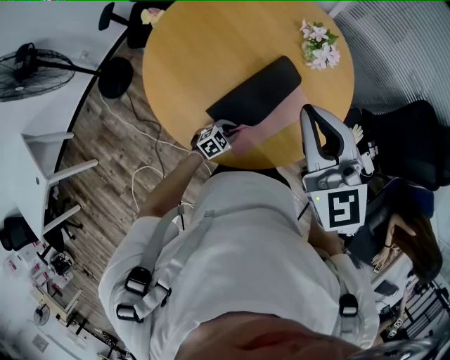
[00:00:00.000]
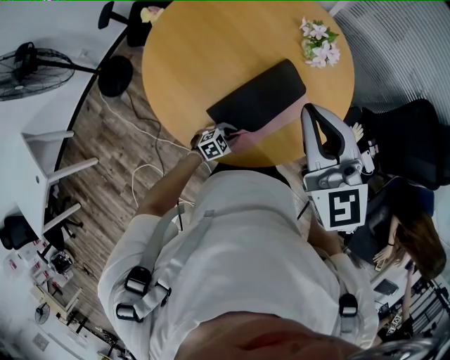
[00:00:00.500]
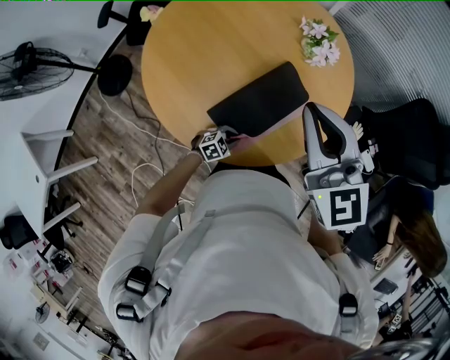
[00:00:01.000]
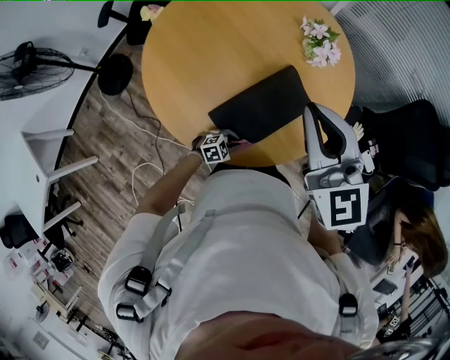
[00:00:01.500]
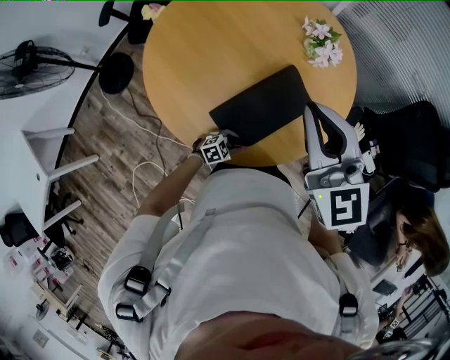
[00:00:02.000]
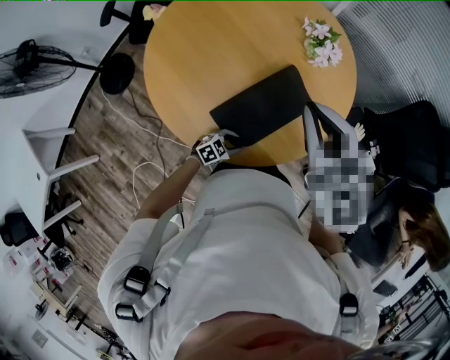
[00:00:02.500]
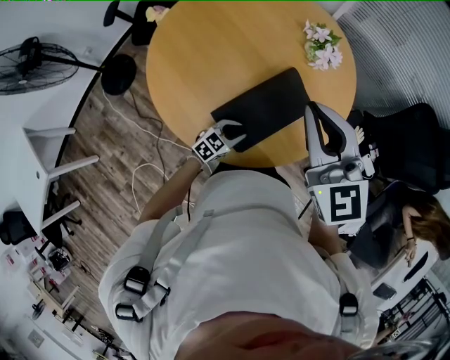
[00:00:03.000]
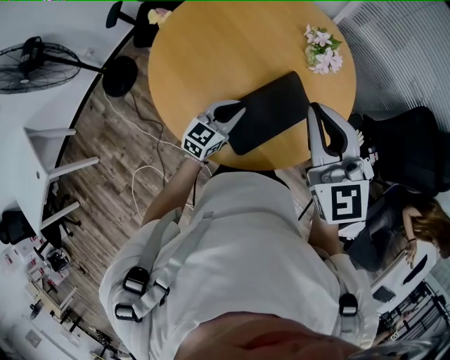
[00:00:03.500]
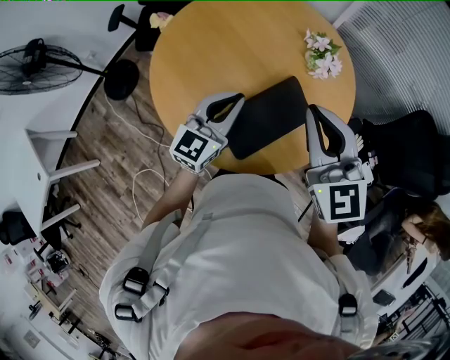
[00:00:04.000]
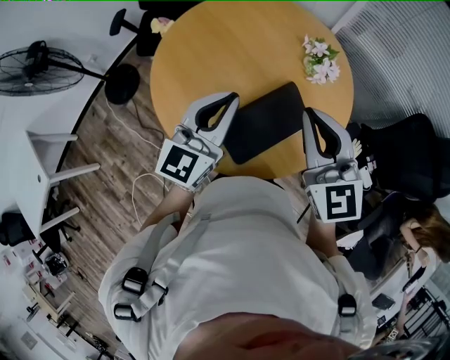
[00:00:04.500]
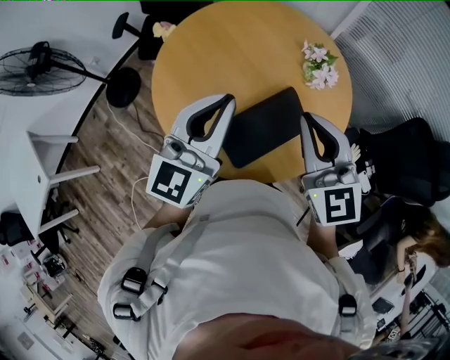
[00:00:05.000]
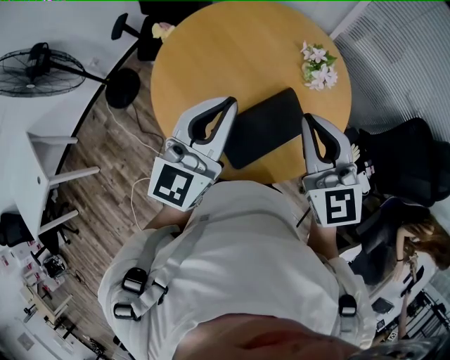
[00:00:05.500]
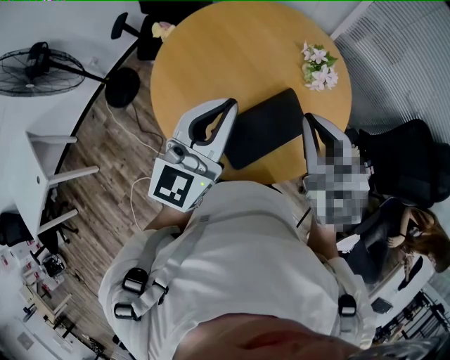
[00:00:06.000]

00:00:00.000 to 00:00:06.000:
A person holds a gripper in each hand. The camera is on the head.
00:00:00.000 to 00:00:02.000: The left gripper moves backward, roughly 5 cm.
00:00:02.000 to 00:00:04.000: The left gripper heads upward, covering approximately 40 cm, points its fingers some 40 degrees further upward, and closes up.
00:00:04.000 to 00:00:06.000: The left gripper goes roughly 15 cm upward.

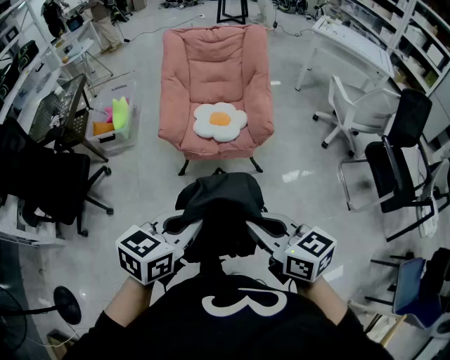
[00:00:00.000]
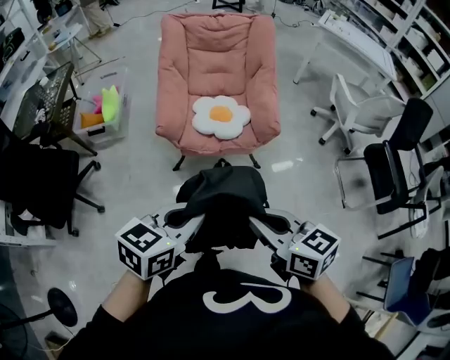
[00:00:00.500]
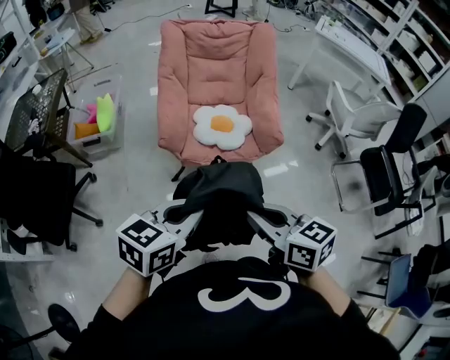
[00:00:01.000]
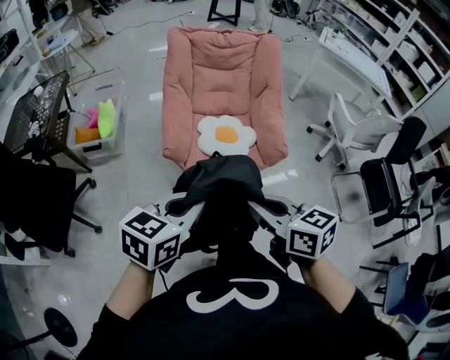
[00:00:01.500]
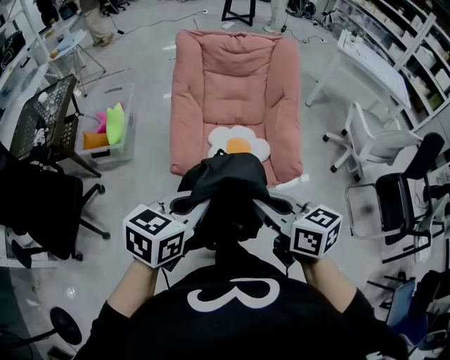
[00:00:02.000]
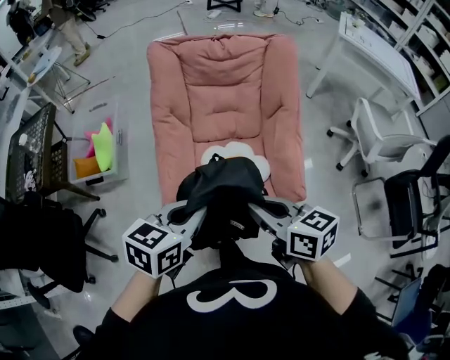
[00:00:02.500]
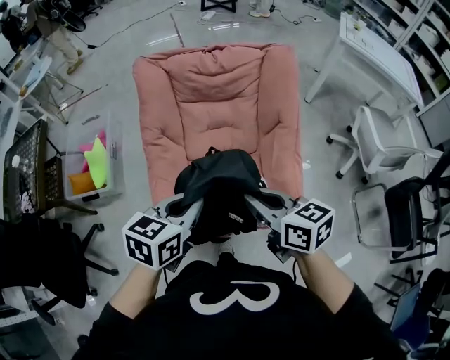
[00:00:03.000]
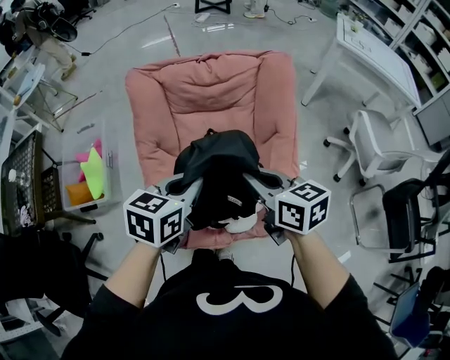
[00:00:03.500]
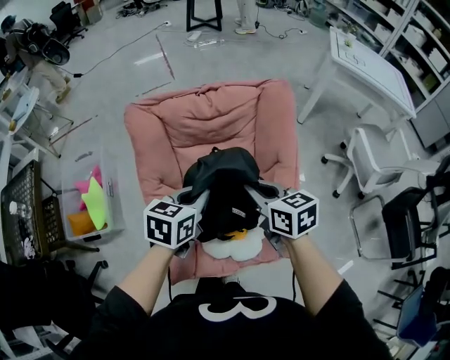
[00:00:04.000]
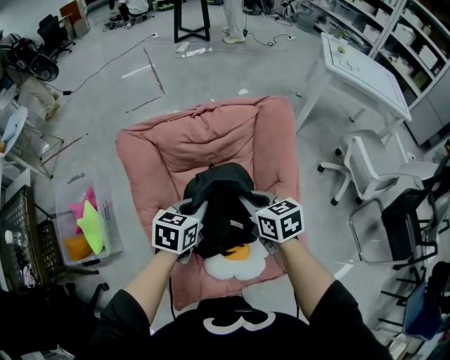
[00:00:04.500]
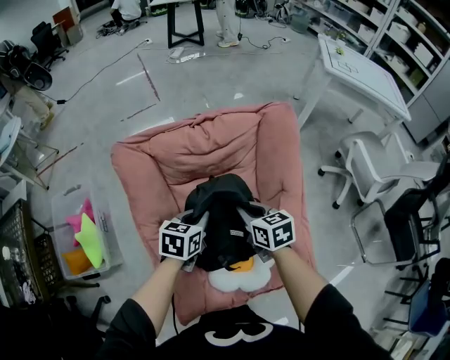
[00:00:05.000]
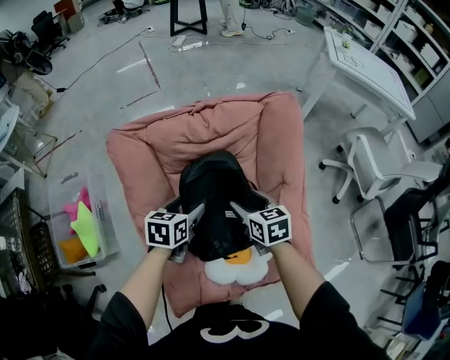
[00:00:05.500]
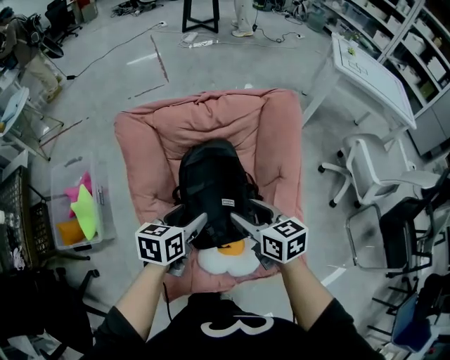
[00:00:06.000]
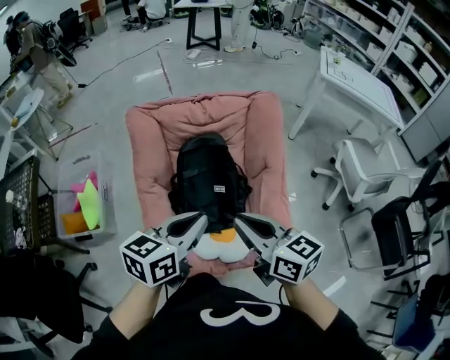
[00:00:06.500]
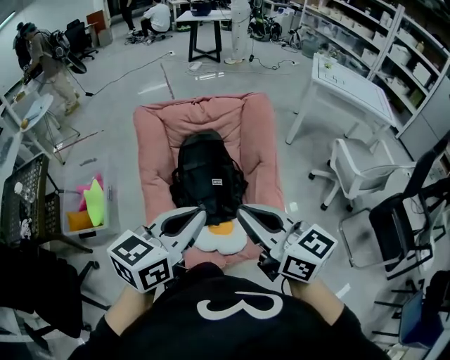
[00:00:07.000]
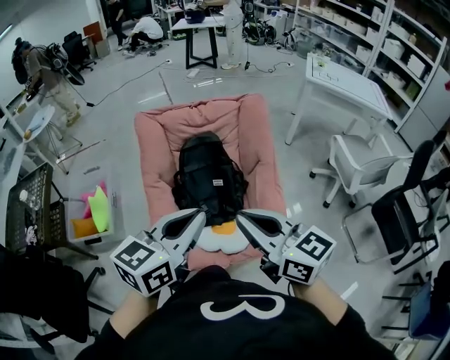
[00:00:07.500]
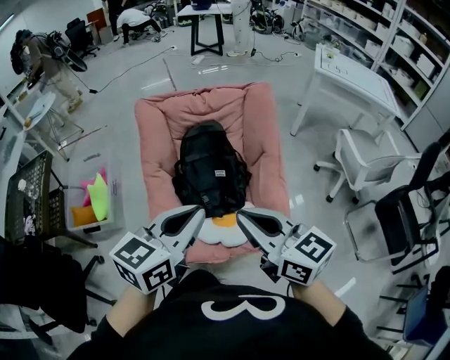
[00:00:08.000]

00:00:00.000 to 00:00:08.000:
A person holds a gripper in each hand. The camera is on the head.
00:00:00.000 to 00:00:02.000: The two grippers go about 35 cm forward and to the left.
00:00:02.000 to 00:00:04.000: Both grippers are carried forward, approximately 50 cm.
00:00:04.000 to 00:00:06.000: The two grippers go approximately 5 cm downward. The left gripper opens its fingers; the right gripper opens up.
00:00:06.000 to 00:00:08.000: The grippers both shift backward and upward by about 35 cm. The left gripper swivels some 30 degrees, and closes up. The right gripper changes its angle by some 30 degrees, and closes.

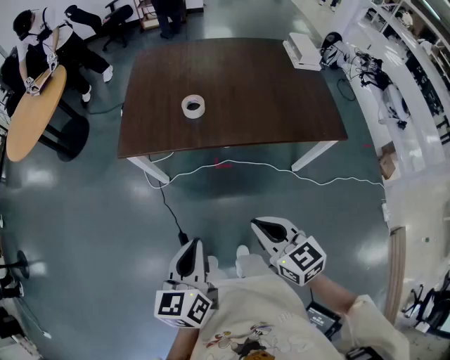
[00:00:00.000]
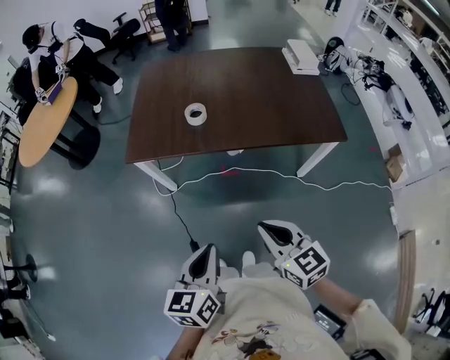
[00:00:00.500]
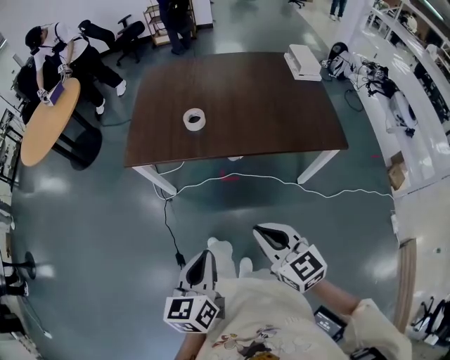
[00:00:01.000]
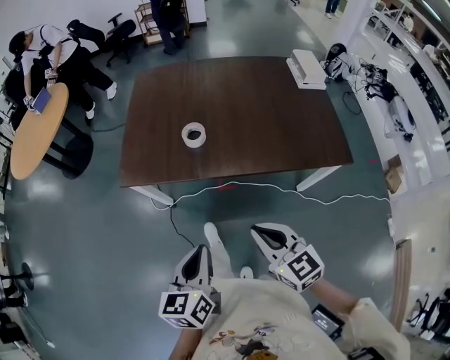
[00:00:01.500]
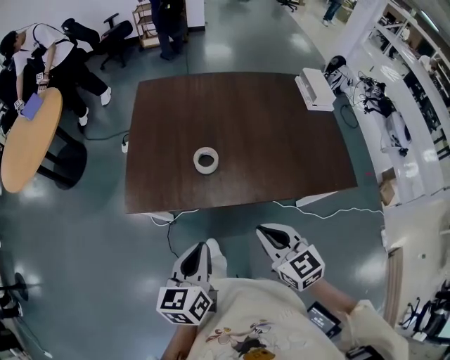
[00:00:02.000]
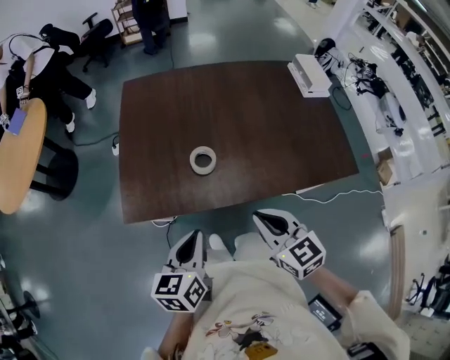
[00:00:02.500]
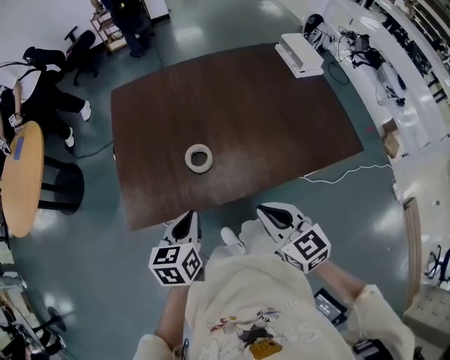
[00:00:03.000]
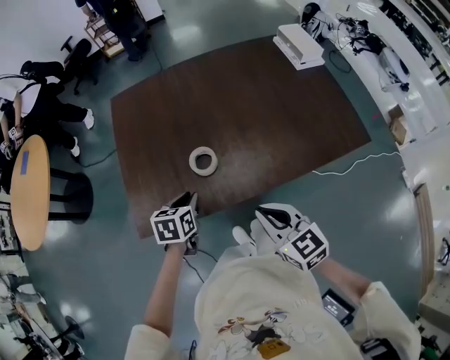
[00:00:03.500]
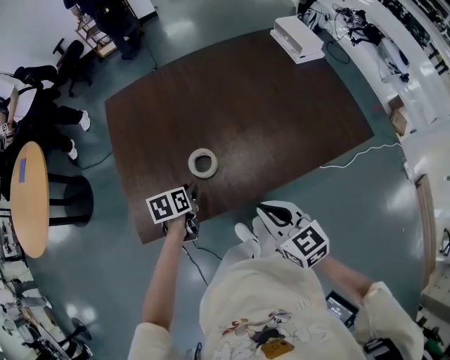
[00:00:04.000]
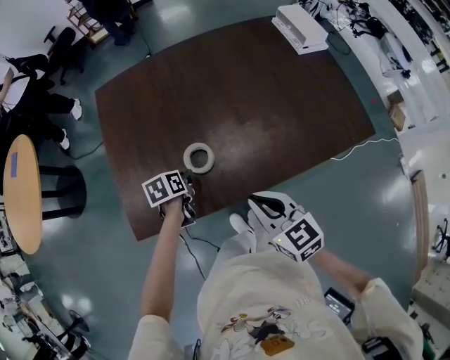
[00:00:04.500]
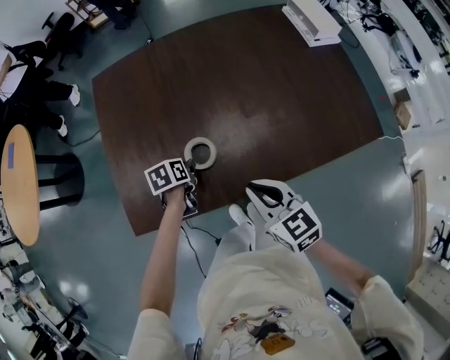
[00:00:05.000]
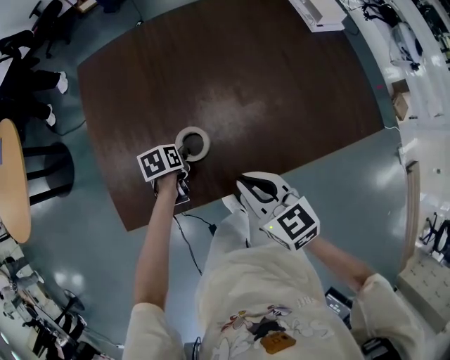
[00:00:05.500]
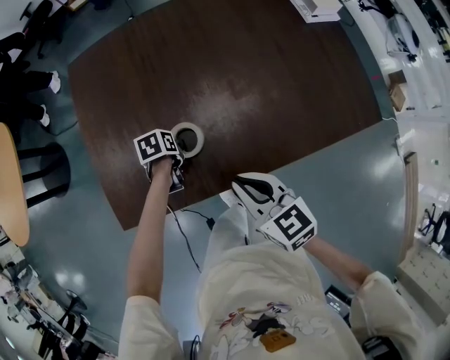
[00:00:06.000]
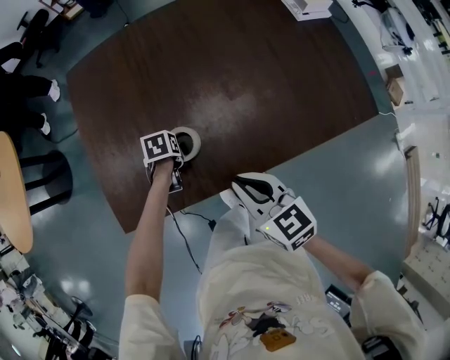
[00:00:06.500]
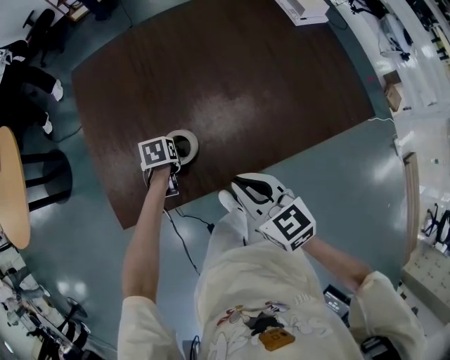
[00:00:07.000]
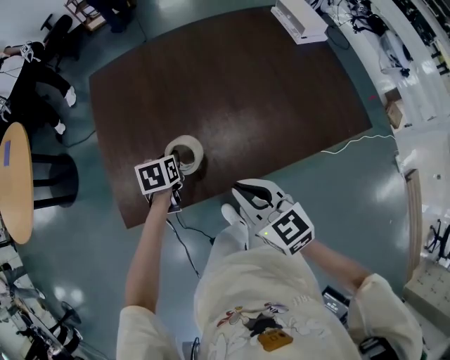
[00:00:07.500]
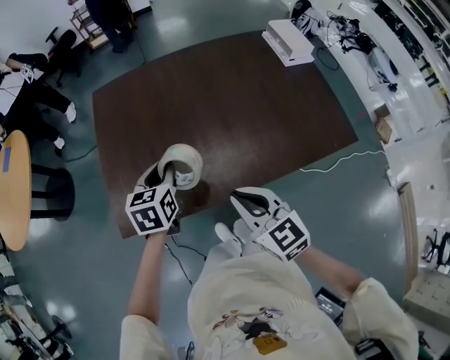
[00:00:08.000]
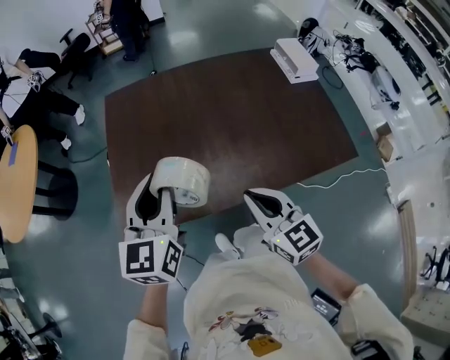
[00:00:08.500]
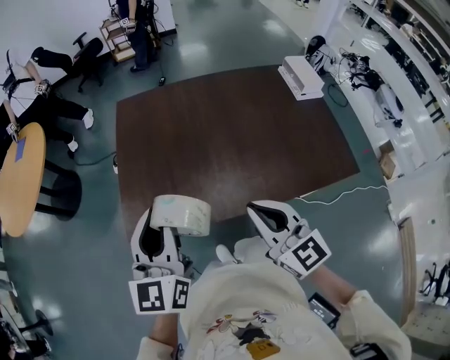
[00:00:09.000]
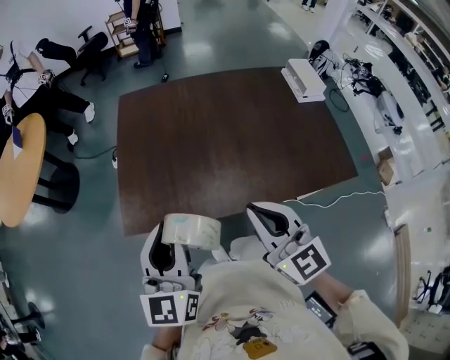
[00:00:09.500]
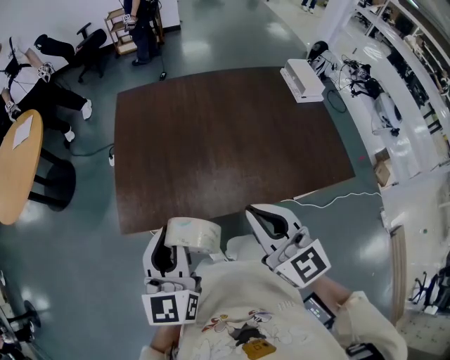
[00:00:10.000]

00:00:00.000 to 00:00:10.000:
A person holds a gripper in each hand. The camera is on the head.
00:00:00.000 to 00:00:02.000: The grippers both shift forward by roughly 25 cm.
00:00:02.000 to 00:00:04.000: The right gripper is displaced forward and downward by approximately 10 cm; the left gripper heads forward and downward, covering approximately 35 cm, tilts its fingers some 30 degrees downward, and opens up.
00:00:04.000 to 00:00:06.000: The right gripper is displaced forward and to the left by about 10 cm, while the left gripper is displaced downward and forward by roughly 15 cm.
00:00:06.000 to 00:00:08.000: The right gripper heads upward, covering approximately 10 cm, while the left gripper moves upward, roughly 25 cm, and points its fingers approximately 30 degrees further upward.
00:00:08.000 to 00:00:10.000: The right gripper heads upward, covering approximately 10 cm; the left gripper shifts about 25 cm backward and upward, and tilts its fingers some 30 degrees upward.

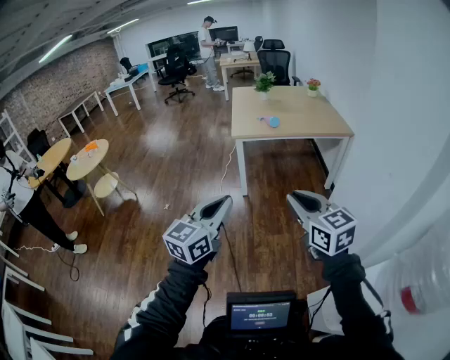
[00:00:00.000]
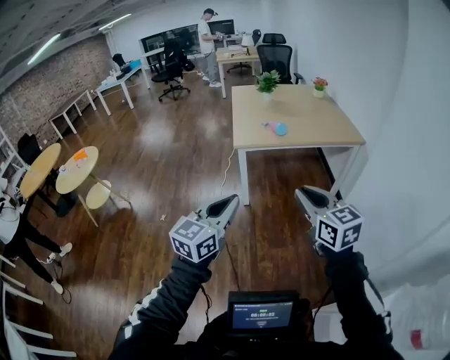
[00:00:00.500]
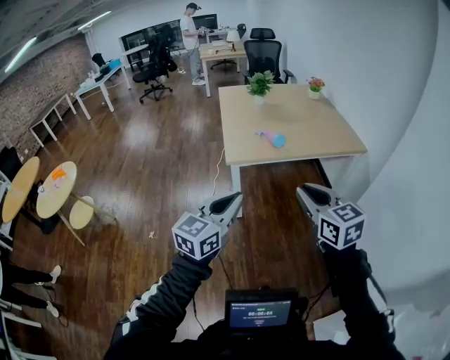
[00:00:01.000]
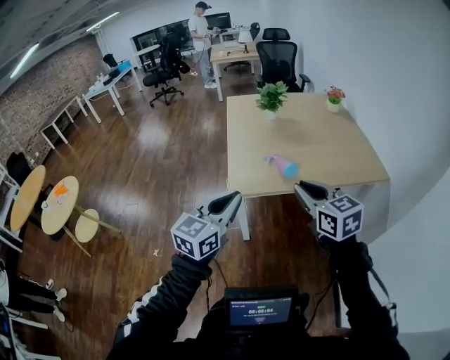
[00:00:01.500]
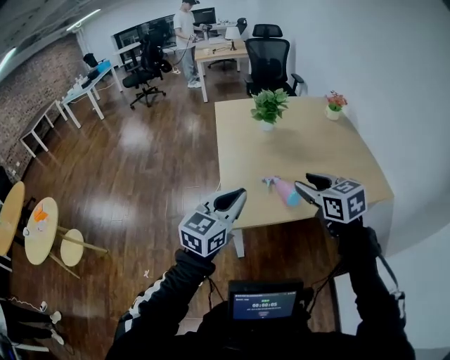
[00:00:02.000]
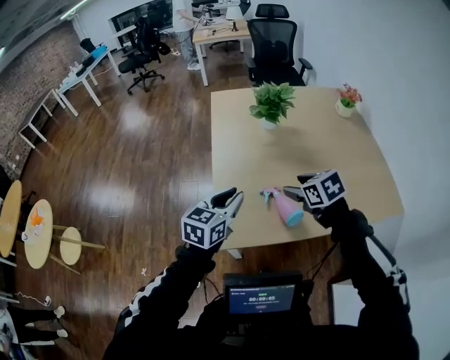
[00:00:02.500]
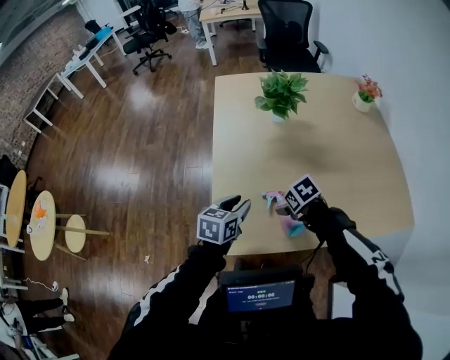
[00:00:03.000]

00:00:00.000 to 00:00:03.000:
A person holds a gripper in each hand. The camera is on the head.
00:00:00.000 to 00:00:01.500: The two grippers travel together, forward, about 1 m.
00:00:01.500 to 00:00:03.000: Both grippers are carried forward, approximately 70 cm. The right gripper shifts some 35 cm downward, tips its fingers downward by about 50 degrees, and opens up; the left gripper swivels about 40 degrees, and opens its fingers.
